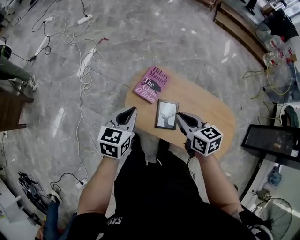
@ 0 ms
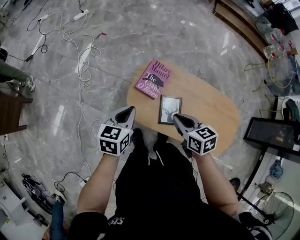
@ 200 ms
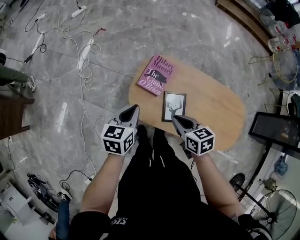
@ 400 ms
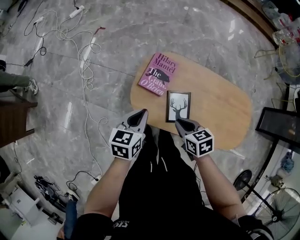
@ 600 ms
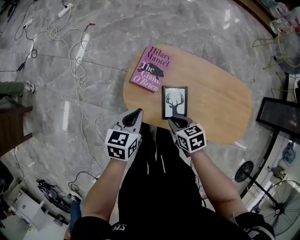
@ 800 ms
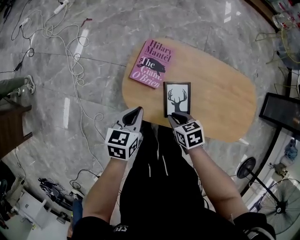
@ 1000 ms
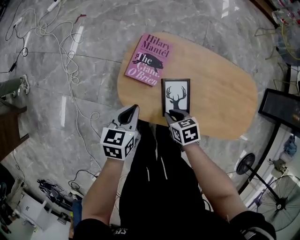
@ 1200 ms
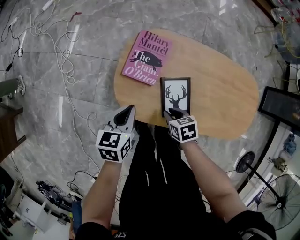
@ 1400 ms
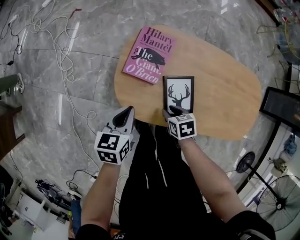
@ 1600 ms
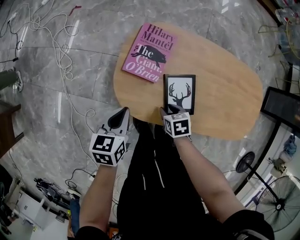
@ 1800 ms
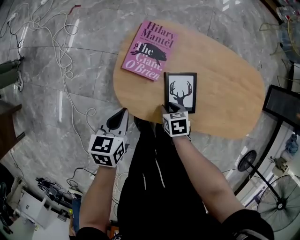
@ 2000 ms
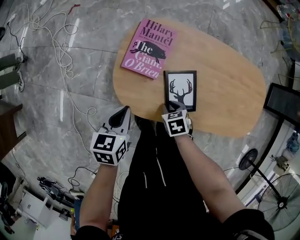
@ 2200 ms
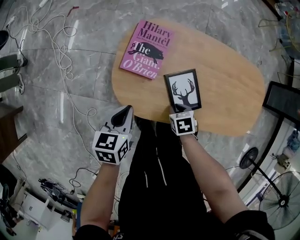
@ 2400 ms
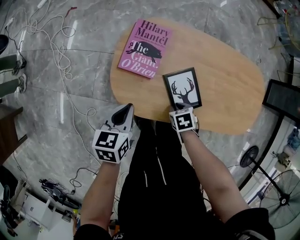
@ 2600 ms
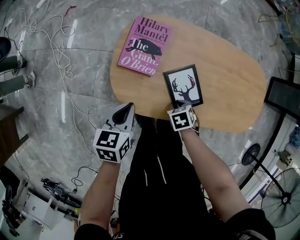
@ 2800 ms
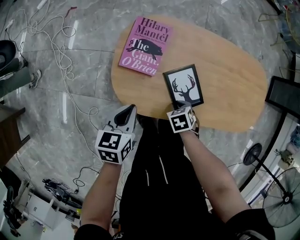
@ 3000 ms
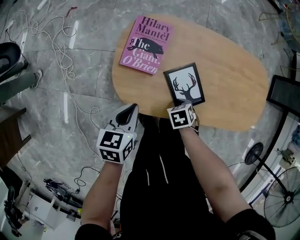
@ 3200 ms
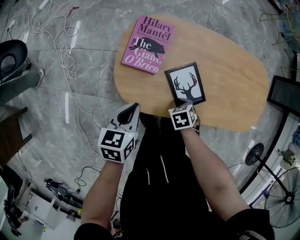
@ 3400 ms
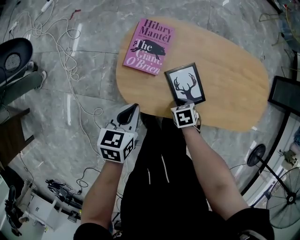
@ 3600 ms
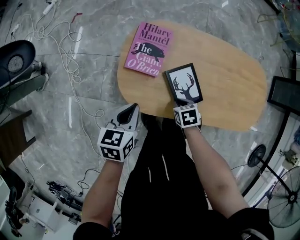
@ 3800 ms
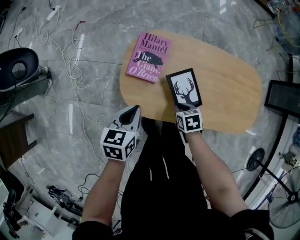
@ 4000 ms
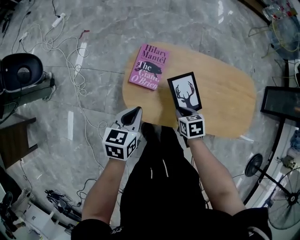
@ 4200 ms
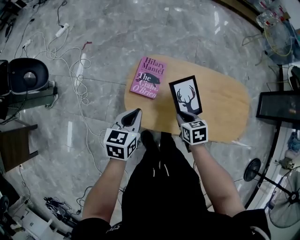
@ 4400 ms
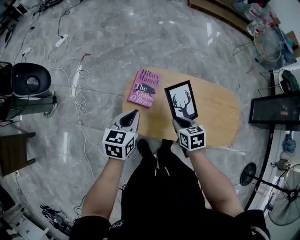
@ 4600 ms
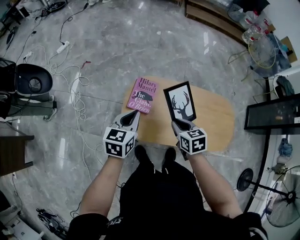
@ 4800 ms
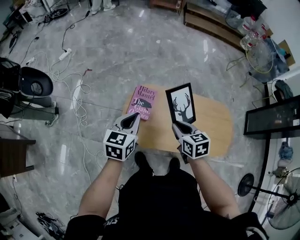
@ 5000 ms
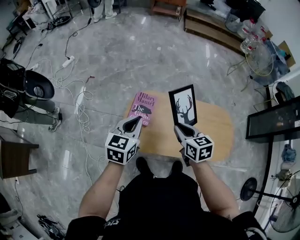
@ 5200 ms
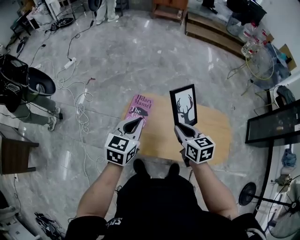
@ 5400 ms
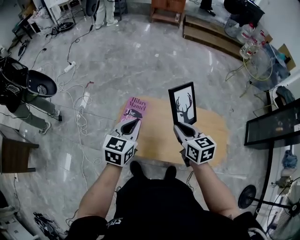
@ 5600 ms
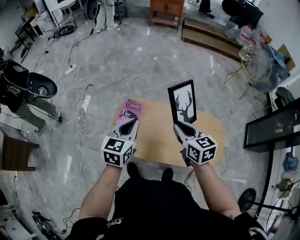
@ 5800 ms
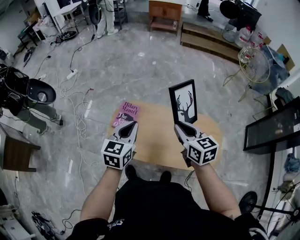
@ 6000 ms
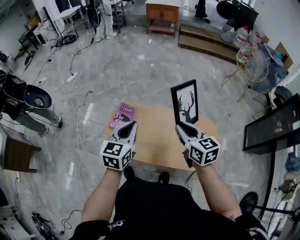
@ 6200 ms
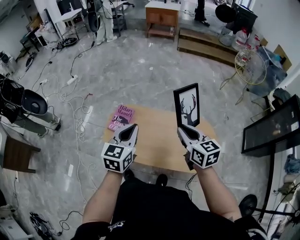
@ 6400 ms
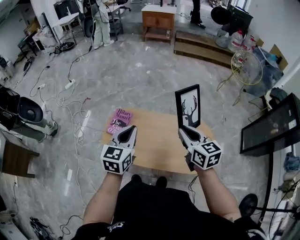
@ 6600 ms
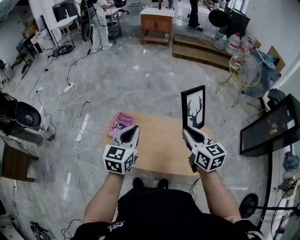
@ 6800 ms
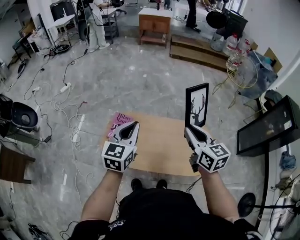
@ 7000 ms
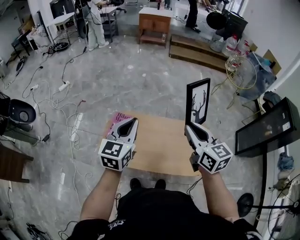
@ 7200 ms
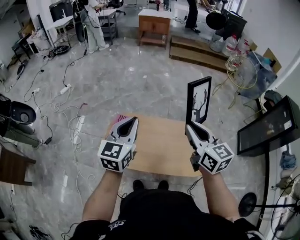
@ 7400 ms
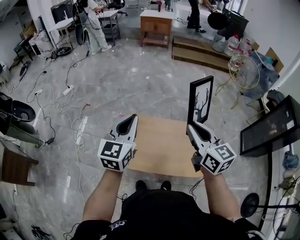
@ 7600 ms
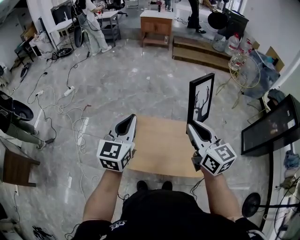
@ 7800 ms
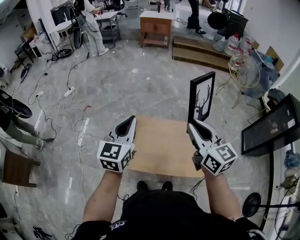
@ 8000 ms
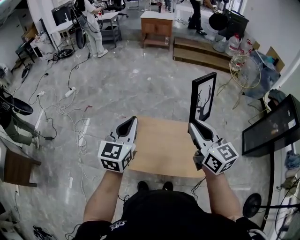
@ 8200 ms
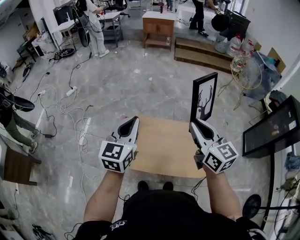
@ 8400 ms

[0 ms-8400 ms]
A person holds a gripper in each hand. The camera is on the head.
0 ms to 1400 ms: The two grippers go about 30 cm downward. The right gripper turns by approximately 30 degrees.
1400 ms to 2800 ms: The right gripper heads downward, covering roughly 5 cm.
2800 ms to 4200 ms: The two grippers go about 15 cm upward. The right gripper changes its angle by about 20 degrees.
4200 ms to 5600 ms: The right gripper is displaced upward by approximately 35 cm, and tilts its fingers approximately 30 degrees upward. The left gripper is displaced upward and to the right by approximately 25 cm, and swivels approximately 20 degrees.
5600 ms to 7000 ms: Both grippers travel together to the right and upward, roughly 20 cm.
7000 ms to 8400 ms: Both grippers travel together upward, roughly 5 cm.

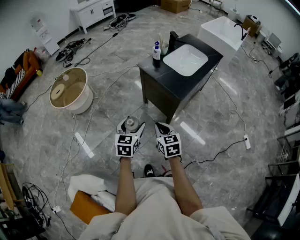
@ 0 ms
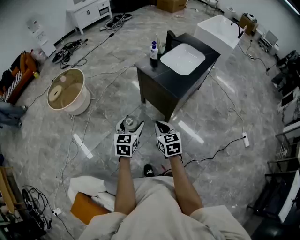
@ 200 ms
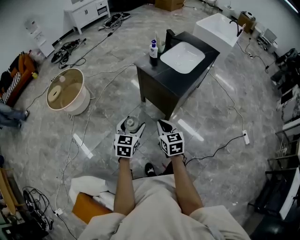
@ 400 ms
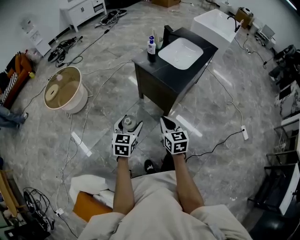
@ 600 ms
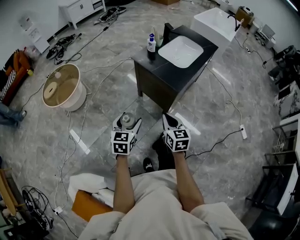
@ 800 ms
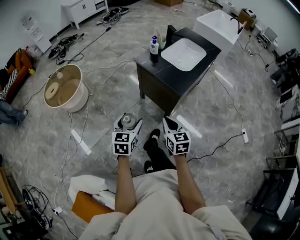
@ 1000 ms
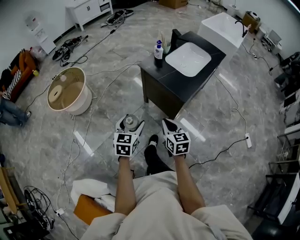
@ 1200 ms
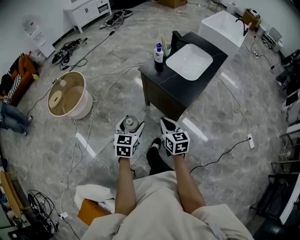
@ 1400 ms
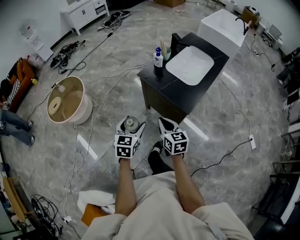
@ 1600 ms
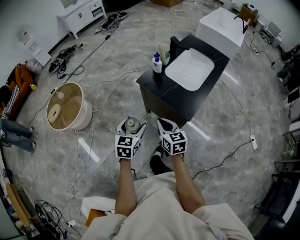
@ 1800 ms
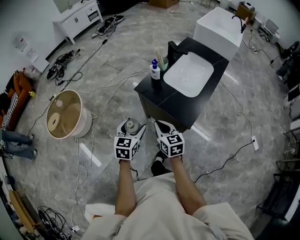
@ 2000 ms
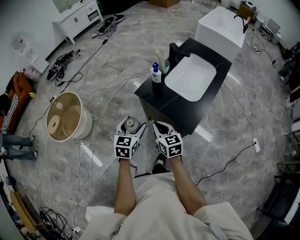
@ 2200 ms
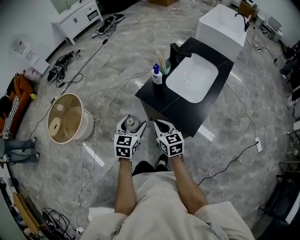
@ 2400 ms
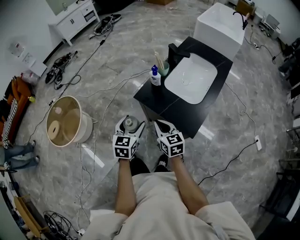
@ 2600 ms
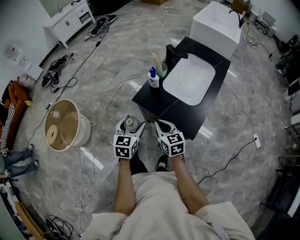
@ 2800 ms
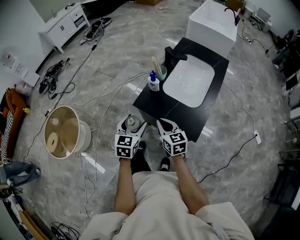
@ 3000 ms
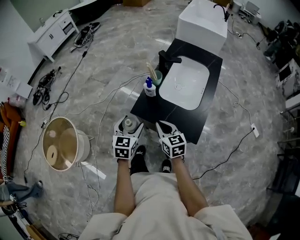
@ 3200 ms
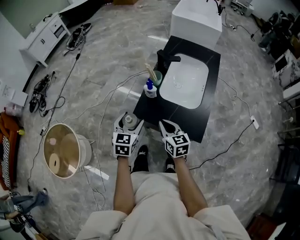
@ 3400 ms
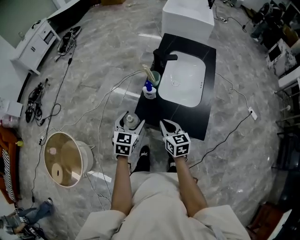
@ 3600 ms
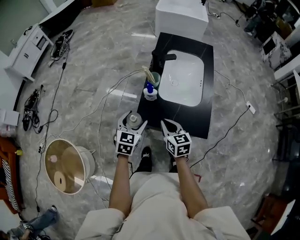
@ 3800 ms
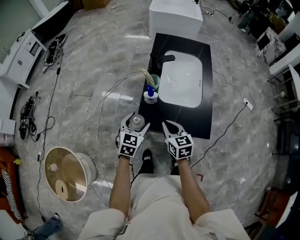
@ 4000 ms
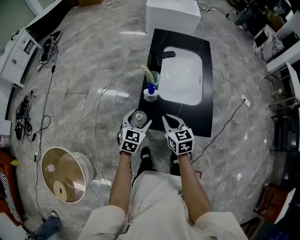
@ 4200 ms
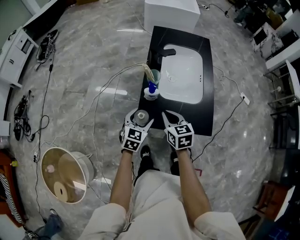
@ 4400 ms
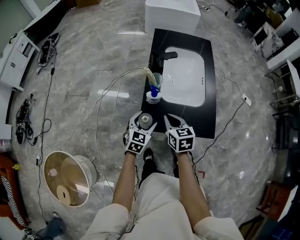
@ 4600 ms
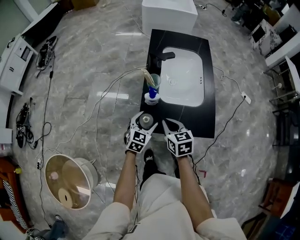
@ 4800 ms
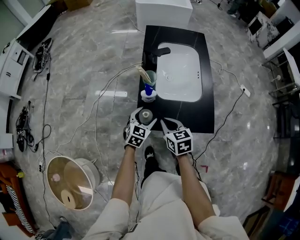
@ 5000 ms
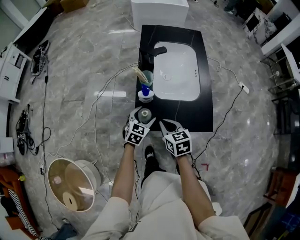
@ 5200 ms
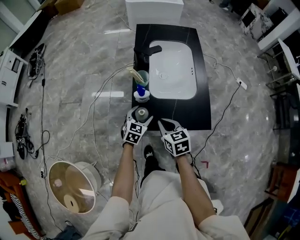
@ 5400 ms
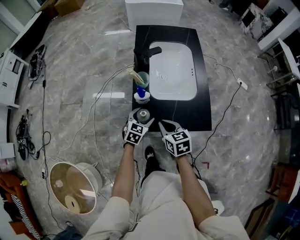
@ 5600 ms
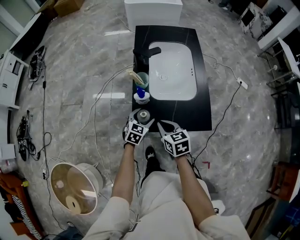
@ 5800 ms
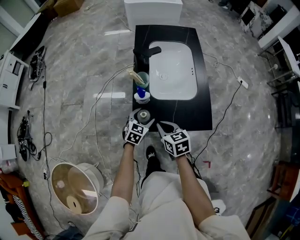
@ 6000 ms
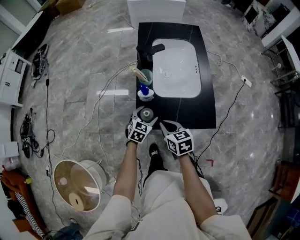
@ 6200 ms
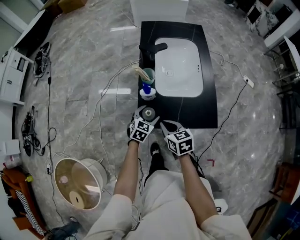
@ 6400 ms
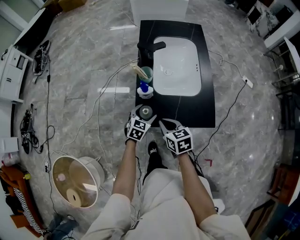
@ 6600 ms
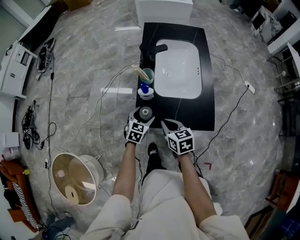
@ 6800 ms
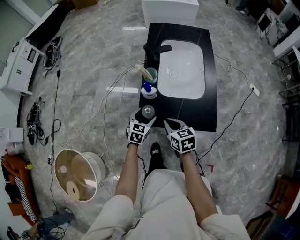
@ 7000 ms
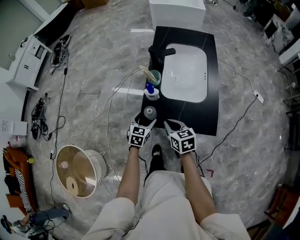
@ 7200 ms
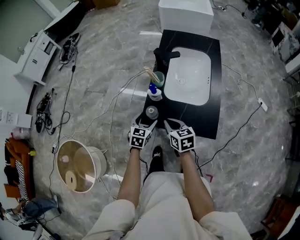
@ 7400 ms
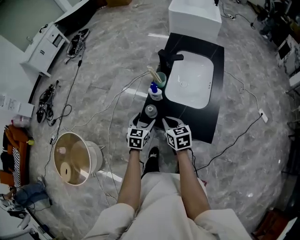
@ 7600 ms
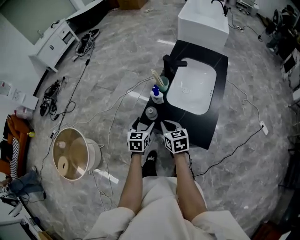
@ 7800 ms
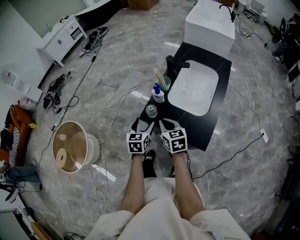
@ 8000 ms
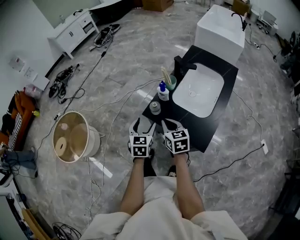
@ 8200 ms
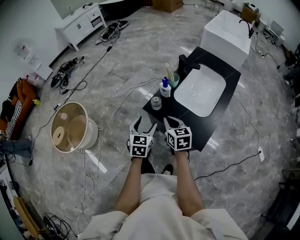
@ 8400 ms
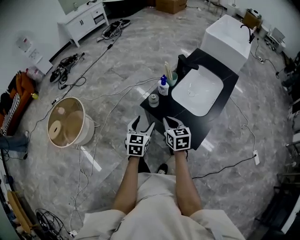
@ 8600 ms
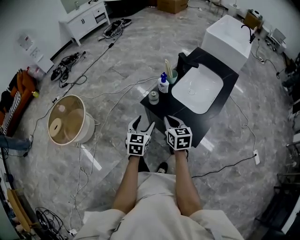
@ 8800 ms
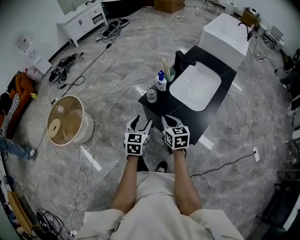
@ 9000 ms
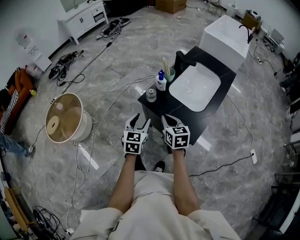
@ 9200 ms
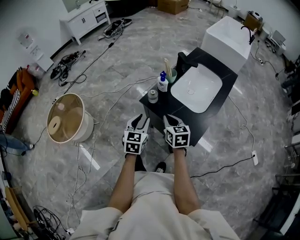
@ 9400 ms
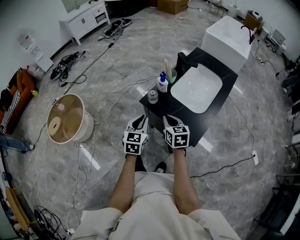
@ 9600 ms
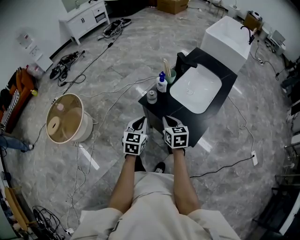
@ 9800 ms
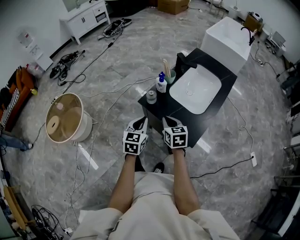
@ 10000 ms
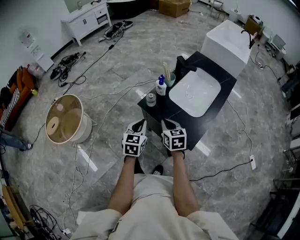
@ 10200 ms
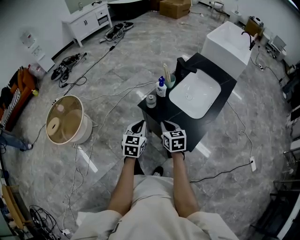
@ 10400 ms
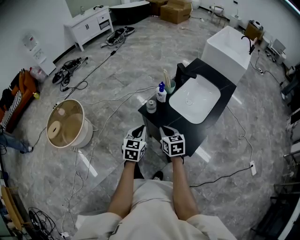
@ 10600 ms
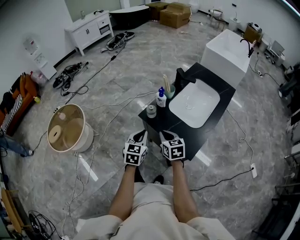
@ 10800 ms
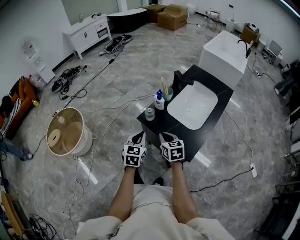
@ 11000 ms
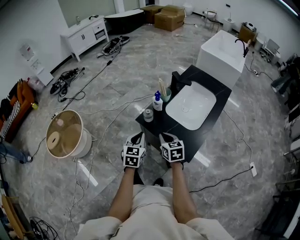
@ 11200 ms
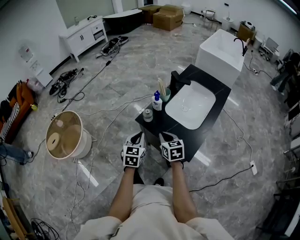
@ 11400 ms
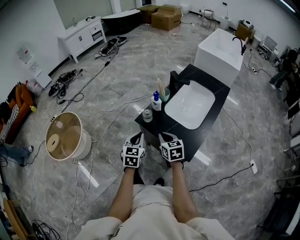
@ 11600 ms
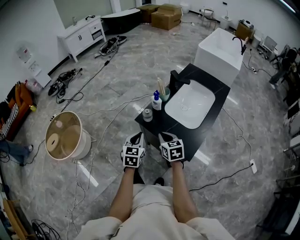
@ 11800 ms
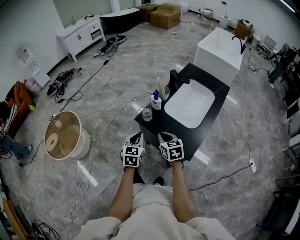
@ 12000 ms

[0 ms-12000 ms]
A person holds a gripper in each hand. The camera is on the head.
0 ms to 1600 ms: The grippers both shift forward by roughly 15 cm.
1600 ms to 3000 ms: The grippers both shift forward by approximately 20 cm.
3000 ms to 4400 ms: The left gripper ends up roughly 15 cm from where it was, and turns by about 30 degrees. The right gripper changes place by about 10 cm, and swivels some 30 degrees.
4400 ms to 6000 ms: The right gripper shifts by approximately 5 cm; the left gripper is displaced downward by roughly 10 cm.
6000 ms to 7600 ms: The left gripper shifts about 10 cm upward, and swivels about 30 degrees.
7600 ms to 9000 ms: The right gripper moves backward, about 10 cm. Meanwhile the left gripper heads backward and upward, covering approximately 15 cm, and swivels some 20 degrees.
9000 ms to 10400 ms: The left gripper closes up.
10400 ms to 12000 ms: Neither gripper changes place.

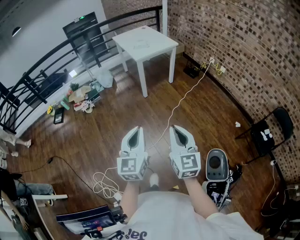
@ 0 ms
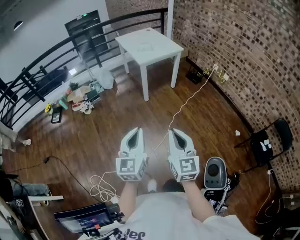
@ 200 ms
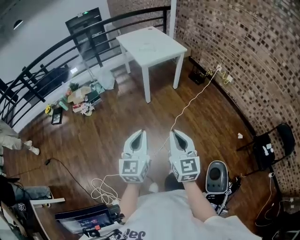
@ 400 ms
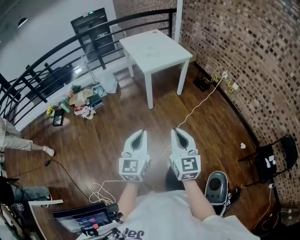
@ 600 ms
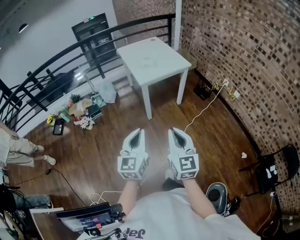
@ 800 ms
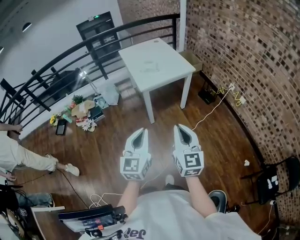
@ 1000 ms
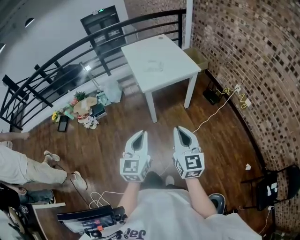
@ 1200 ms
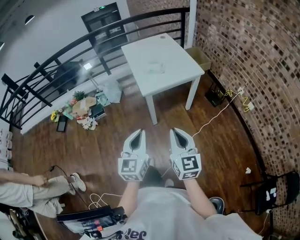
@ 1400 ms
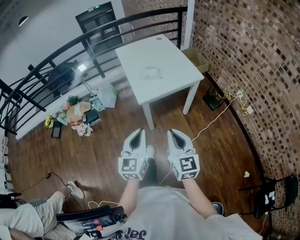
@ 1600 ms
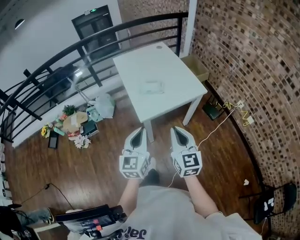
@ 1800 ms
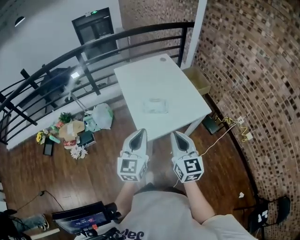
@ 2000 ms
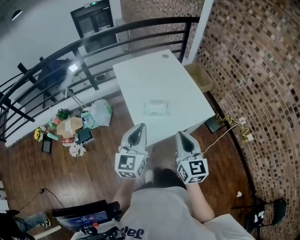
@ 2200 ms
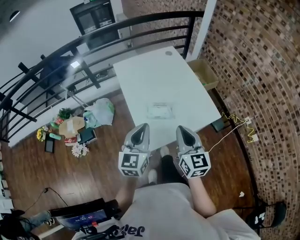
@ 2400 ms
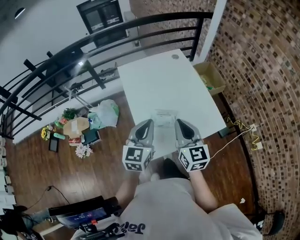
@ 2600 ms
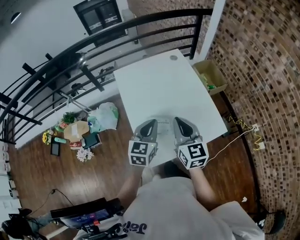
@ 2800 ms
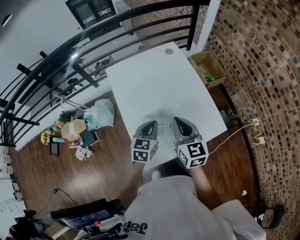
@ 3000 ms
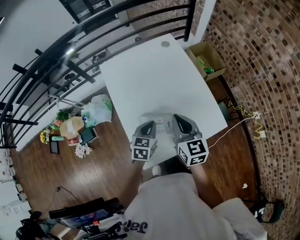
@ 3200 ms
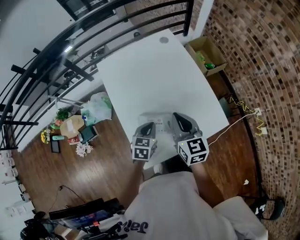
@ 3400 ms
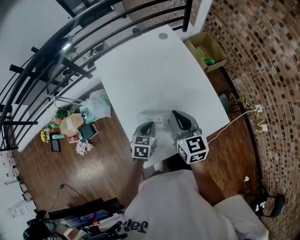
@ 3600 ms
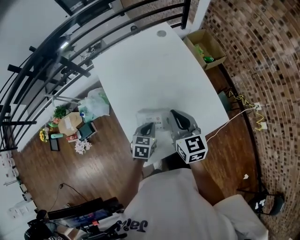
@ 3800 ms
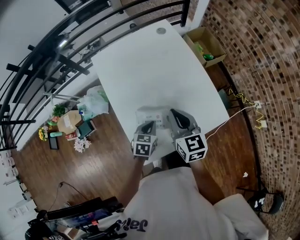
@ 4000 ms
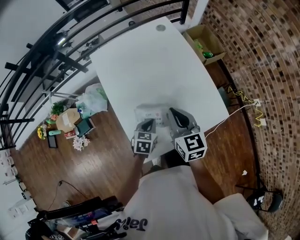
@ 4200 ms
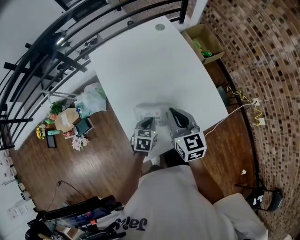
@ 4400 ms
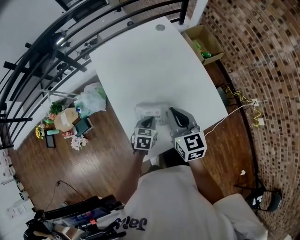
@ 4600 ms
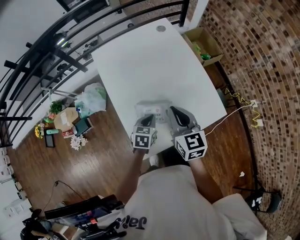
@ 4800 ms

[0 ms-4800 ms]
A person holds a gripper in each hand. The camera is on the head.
0 ms to 1600 ms: The pair of grippers is taken forward, about 60 cm.
1600 ms to 3200 ms: Both grippers are carried forward, approximately 60 cm. The left gripper points its fingers about 30 degrees further downward.
3200 ms to 4800 ms: The left gripper shifts about 10 cm downward.
